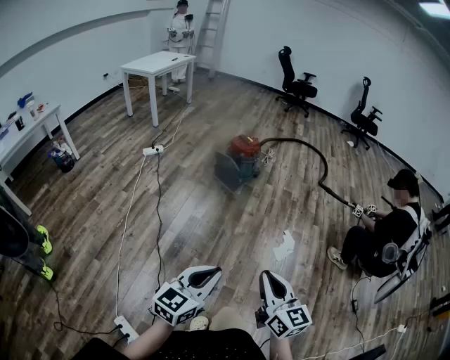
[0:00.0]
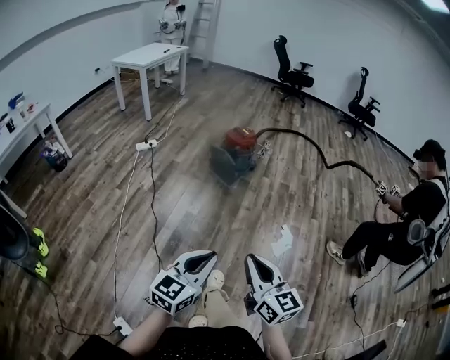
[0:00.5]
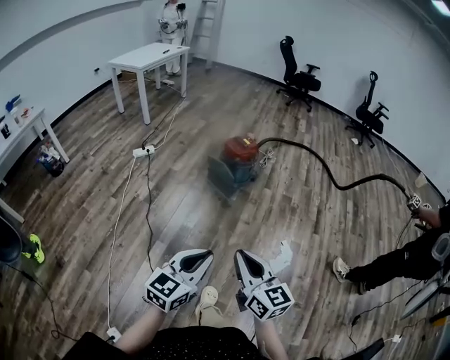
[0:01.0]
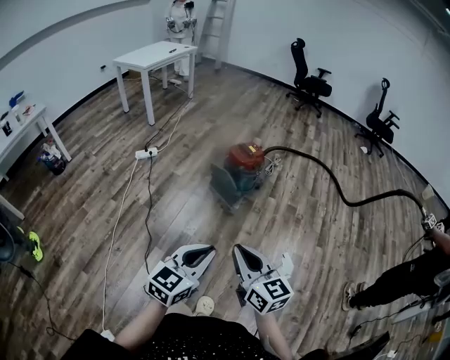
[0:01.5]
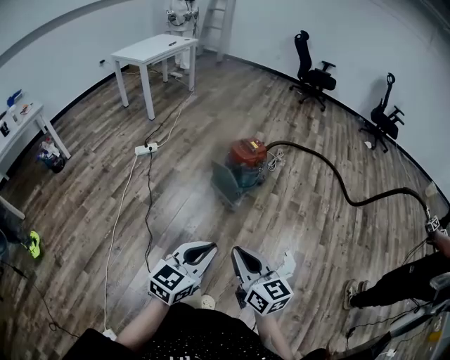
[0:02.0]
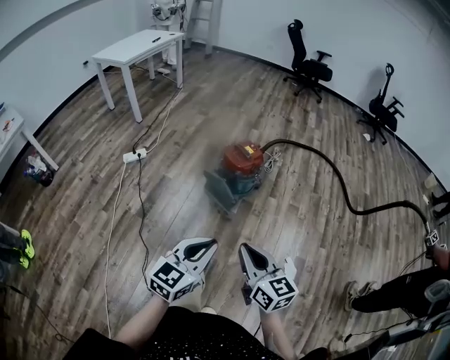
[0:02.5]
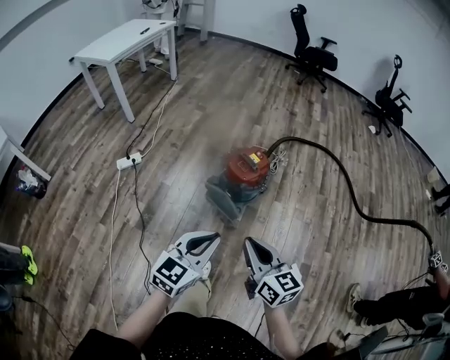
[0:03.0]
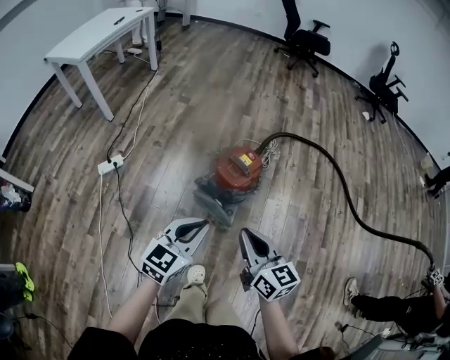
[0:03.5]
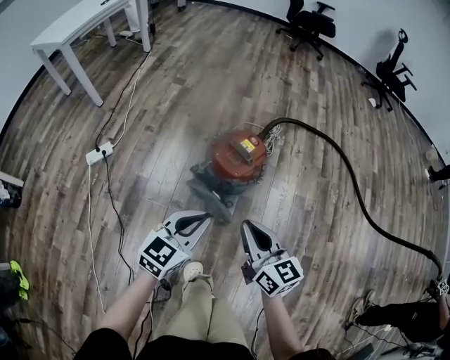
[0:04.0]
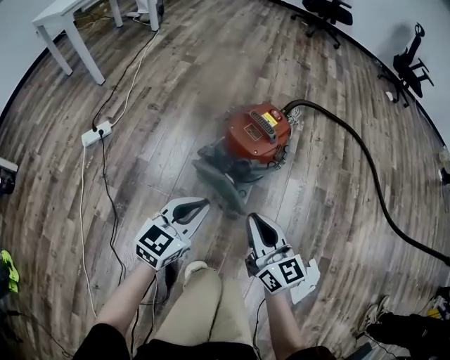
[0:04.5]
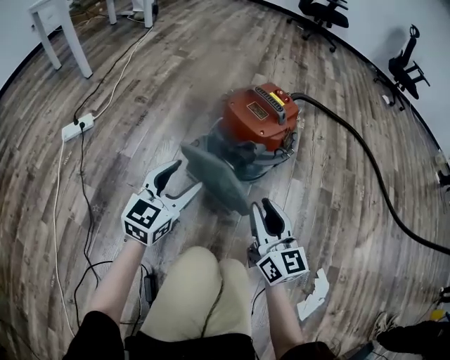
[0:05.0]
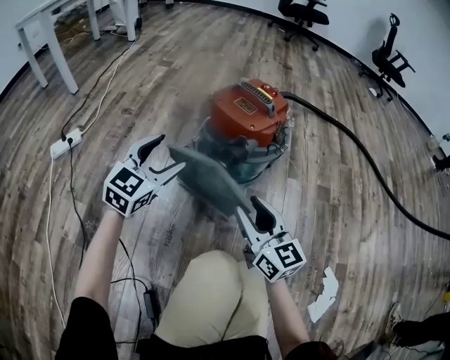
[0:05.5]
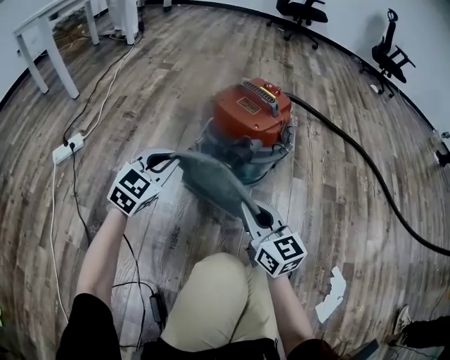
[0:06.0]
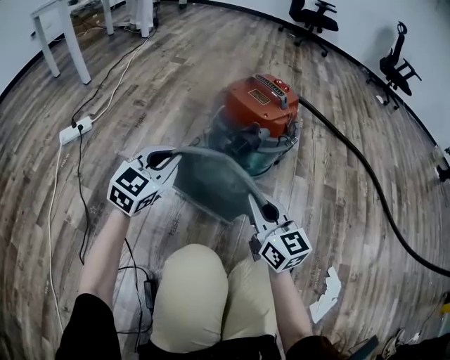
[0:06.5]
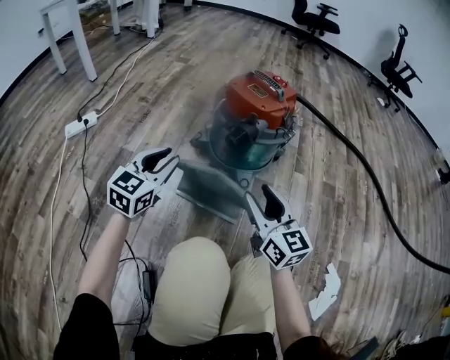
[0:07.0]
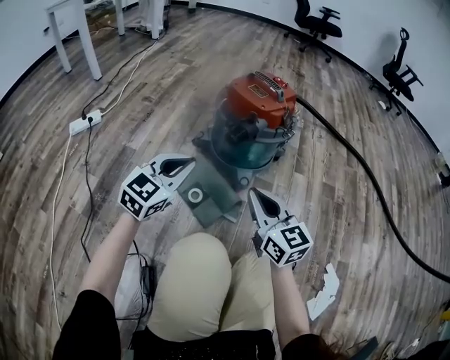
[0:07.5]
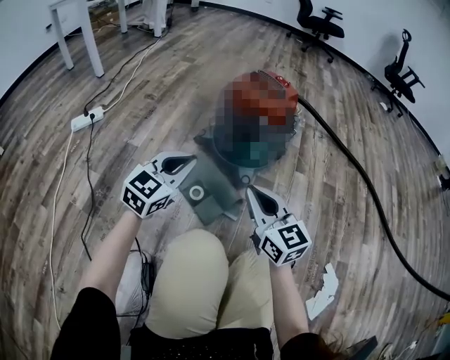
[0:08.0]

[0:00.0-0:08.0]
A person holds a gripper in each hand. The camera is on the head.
0.0 to 2.0 s: The grippers both shift forward by roughly 35 cm.
2.0 to 4.0 s: The pair of grippers is taken forward, some 50 cm.
4.0 to 6.0 s: The grippers both shift downward by approximately 35 cm. The right gripper opens, then closes once more, while the left gripper turns by approximately 30 degrees, and opens, then closes once more.
6.0 to 8.0 s: The left gripper heads backward, covering about 15 cm. Meanwhile the right gripper moves backward, some 10 cm, and opens and closes again.

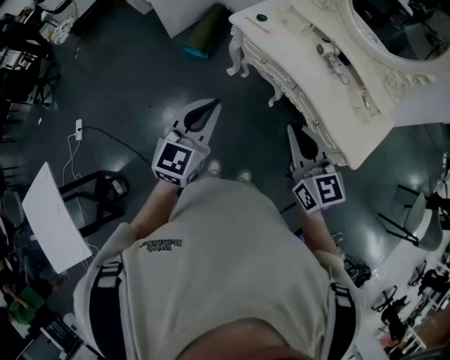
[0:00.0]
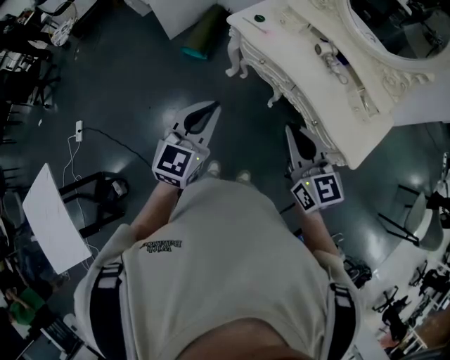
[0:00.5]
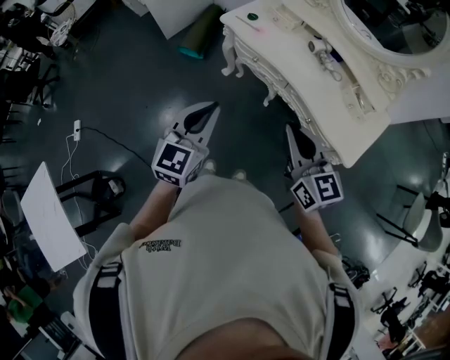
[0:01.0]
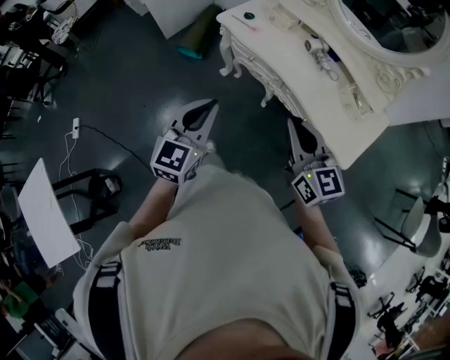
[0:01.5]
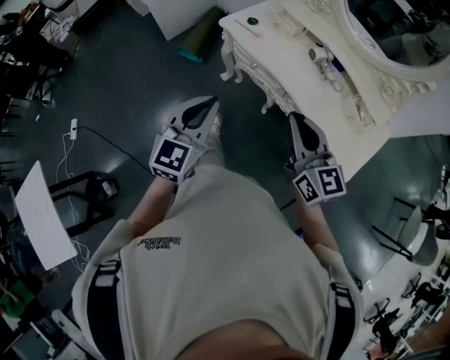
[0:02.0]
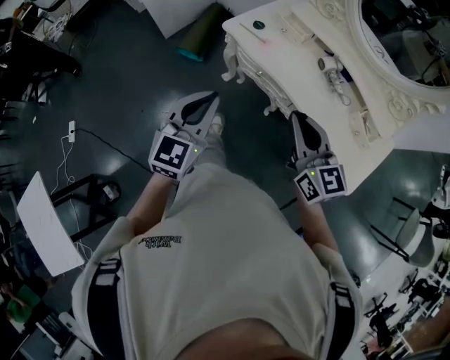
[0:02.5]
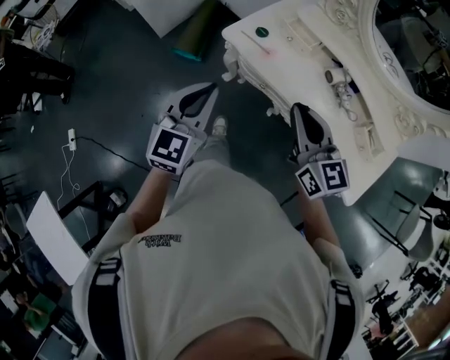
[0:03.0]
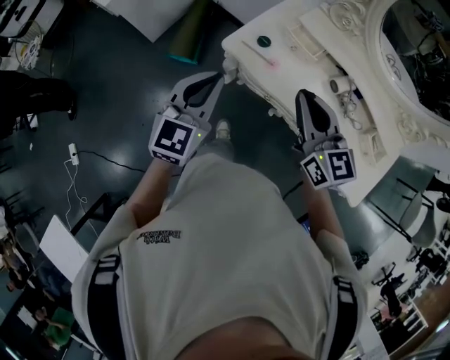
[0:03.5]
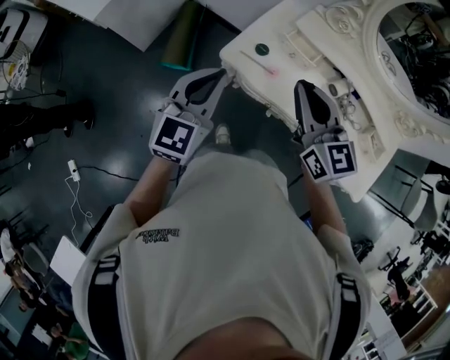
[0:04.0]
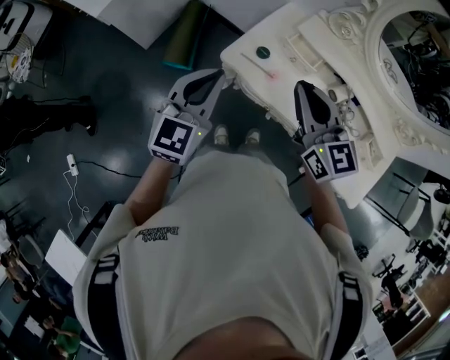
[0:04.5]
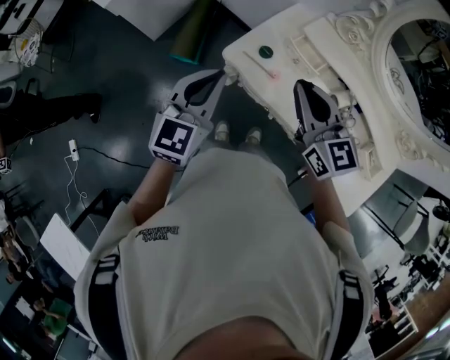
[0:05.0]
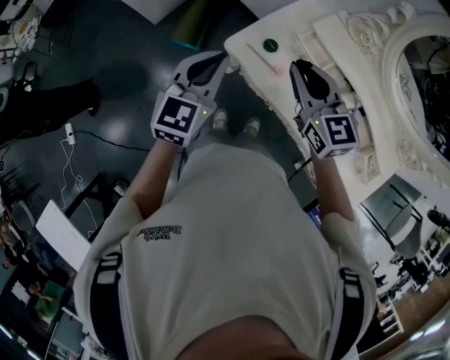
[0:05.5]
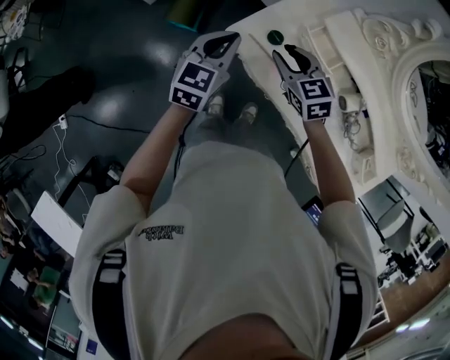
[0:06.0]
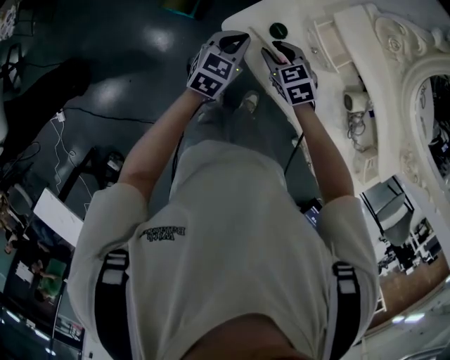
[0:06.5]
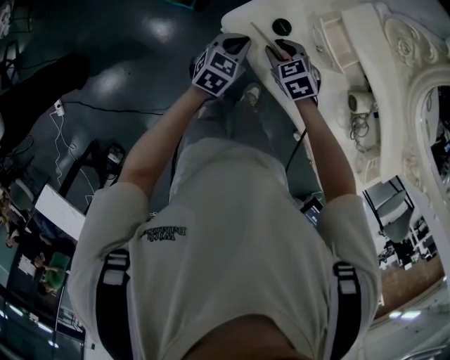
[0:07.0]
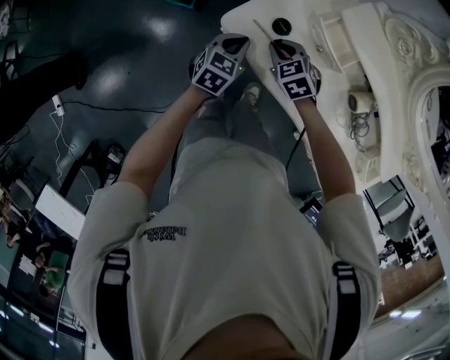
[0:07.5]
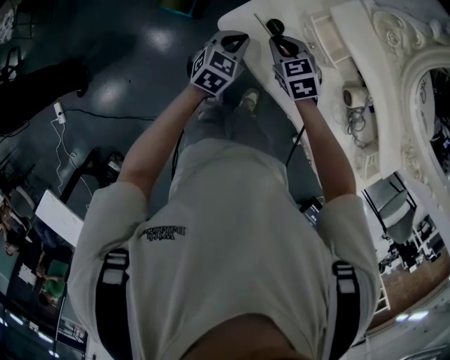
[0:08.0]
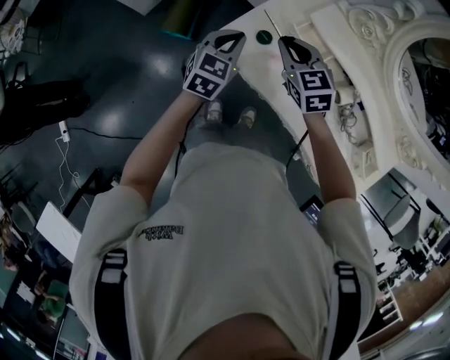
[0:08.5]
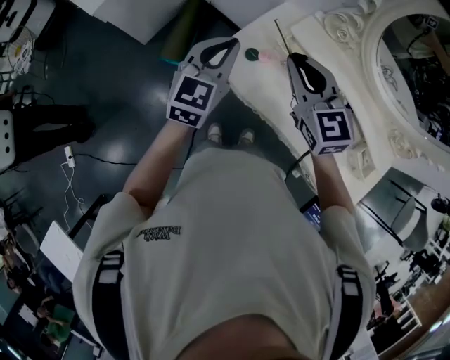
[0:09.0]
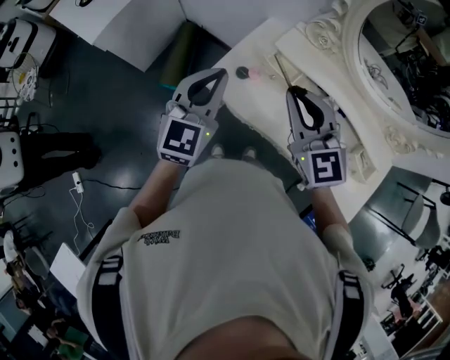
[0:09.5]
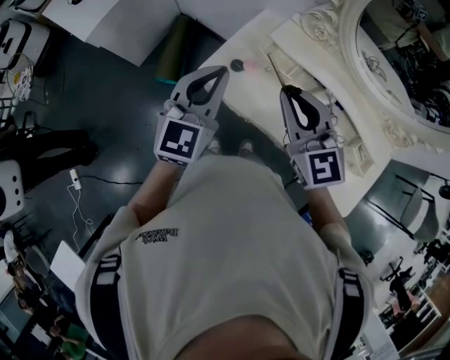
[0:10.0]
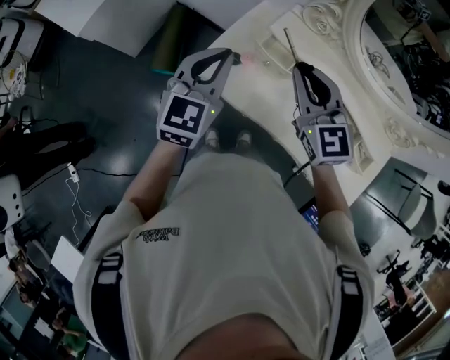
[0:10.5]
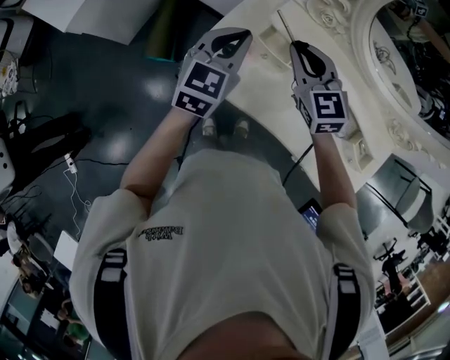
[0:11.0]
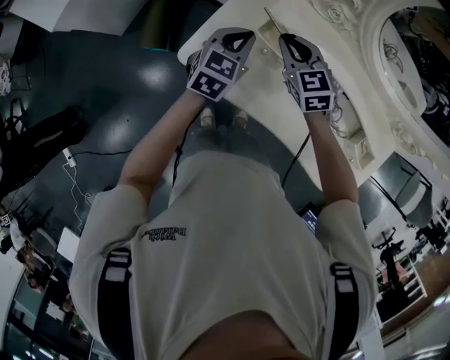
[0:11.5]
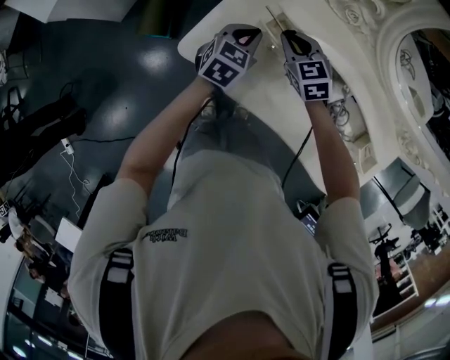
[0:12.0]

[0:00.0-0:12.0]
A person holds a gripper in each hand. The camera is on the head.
0.0 to 2.0 s: The left gripper is displaced to the right by some 5 cm. Meanwhile the right gripper is displaced to the right and forward by roughly 10 cm.
2.0 to 4.0 s: The two grippers travel together, forward, roughly 40 cm.
4.0 to 6.0 s: Both grippers move downward and forward, about 25 cm. The right gripper rotates about 40 degrees, and opens up.
6.0 to 8.0 s: The left gripper goes roughly 15 cm downward; the right gripper shifts roughly 10 cm downward, and closes up.
8.0 to 10.0 s: The two grippers go some 30 cm upward. The right gripper points its fingers about 40 degrees further upward, while the left gripper tips its fingers upward by approximately 30 degrees.
10.0 to 12.0 s: Both grippers travel together downward and forward, approximately 35 cm. The right gripper changes its angle by roughly 30 degrees. The left gripper rotates approximately 30 degrees.

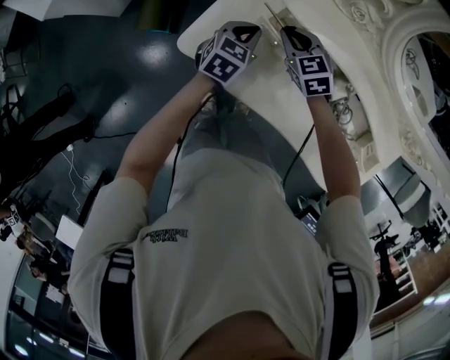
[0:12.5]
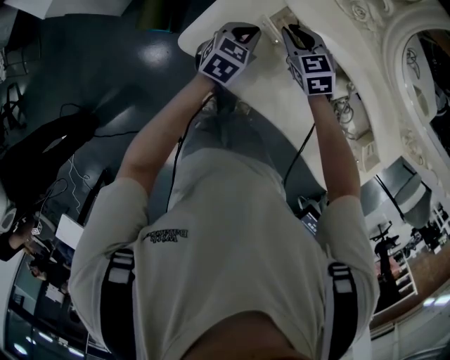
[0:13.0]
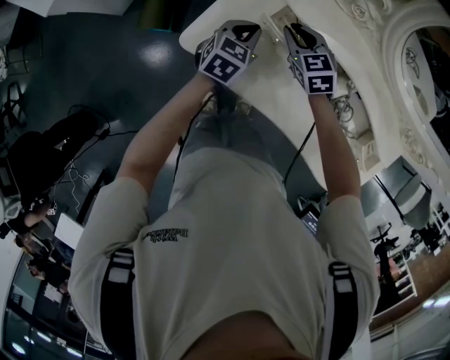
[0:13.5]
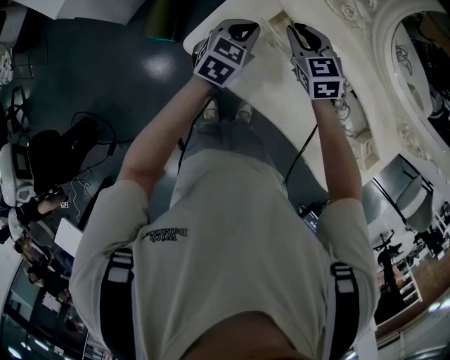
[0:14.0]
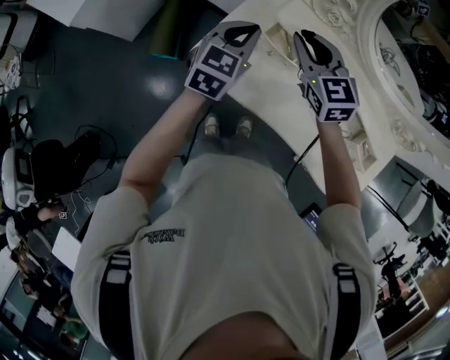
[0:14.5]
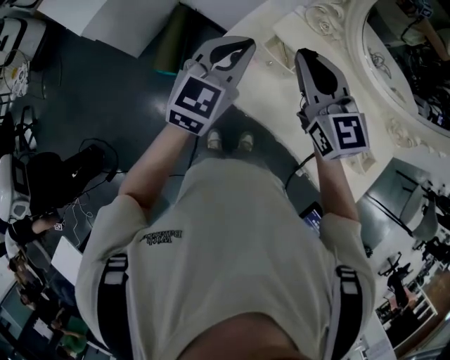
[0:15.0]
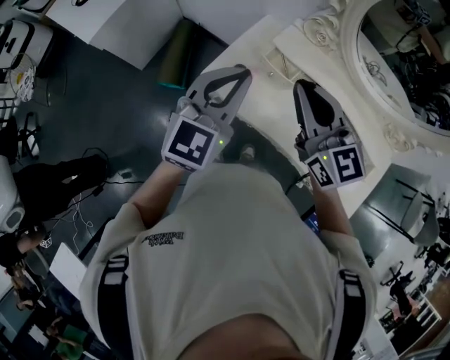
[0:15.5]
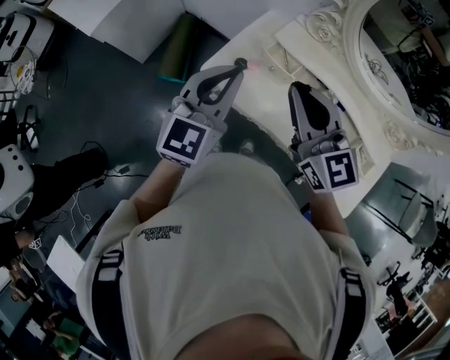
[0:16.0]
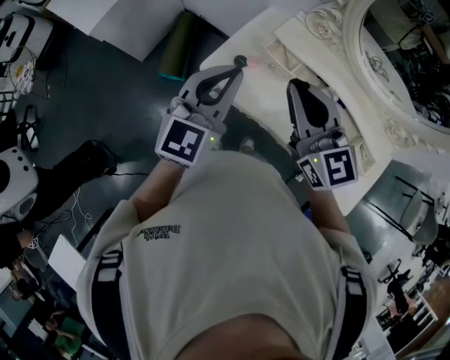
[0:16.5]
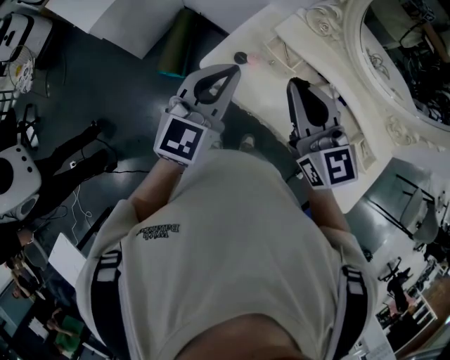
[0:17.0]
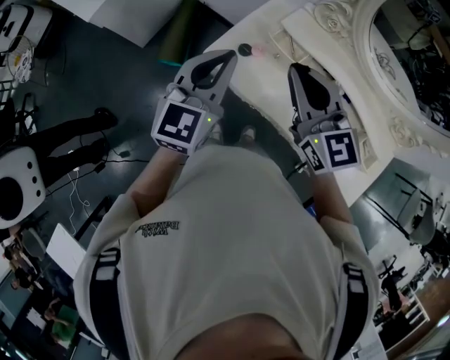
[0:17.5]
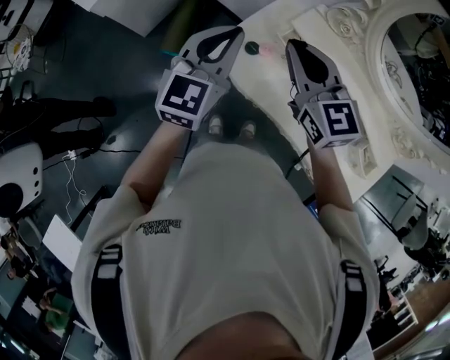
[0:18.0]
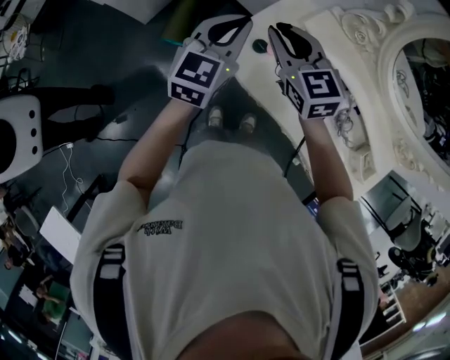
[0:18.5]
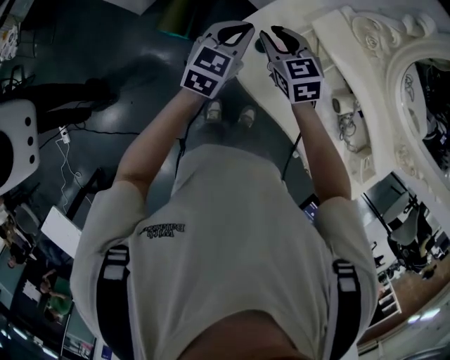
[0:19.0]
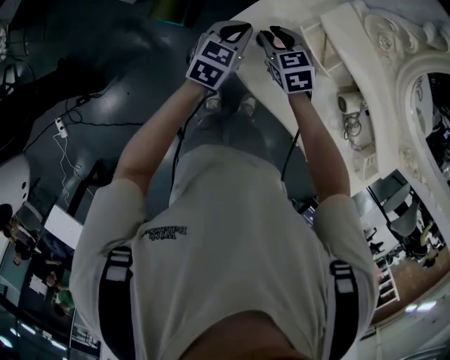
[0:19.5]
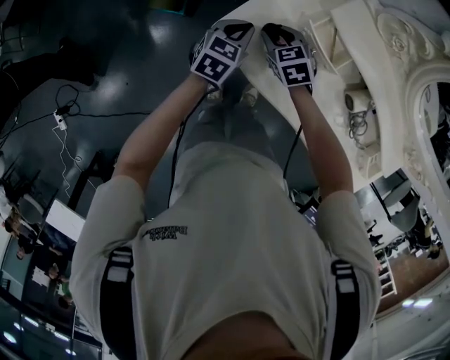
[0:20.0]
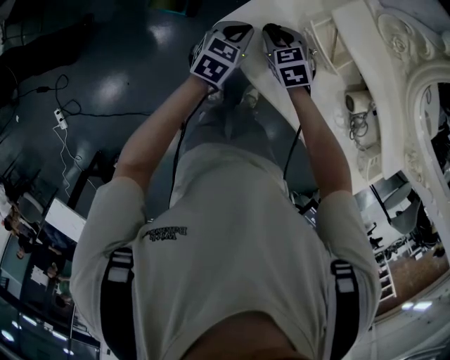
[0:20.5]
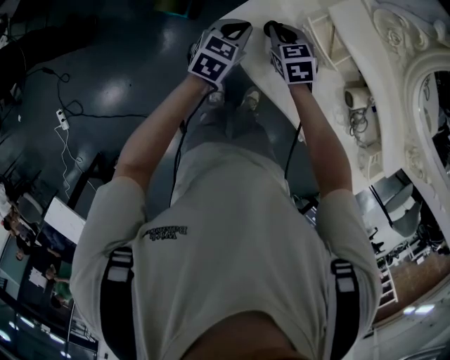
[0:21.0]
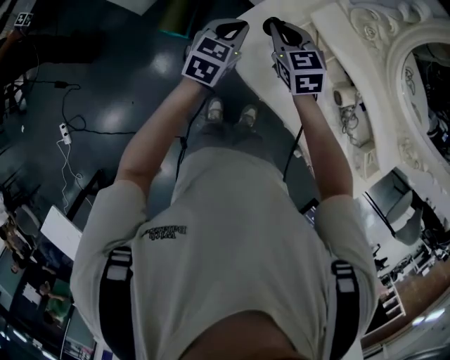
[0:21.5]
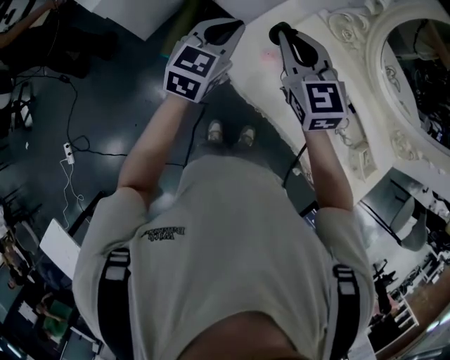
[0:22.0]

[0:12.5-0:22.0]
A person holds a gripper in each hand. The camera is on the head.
12.5 to 14.5 s: The two grippers go some 20 cm upward. The right gripper swivels about 20 degrees.
14.5 to 16.5 s: The two grippers go some 20 cm backward and upward. The right gripper changes its angle by approximately 20 degrees.
16.5 to 18.0 s: The grippers both shift forward by roughly 10 cm.
18.0 to 20.0 s: Both grippers move downward, approximately 35 cm. The right gripper tips its fingers downward by some 40 degrees, and opens. Meanwhile the left gripper tilts its fingers about 30 degrees downward.
20.0 to 22.0 s: The grippers both shift upward by some 30 cm. The right gripper points its fingers roughly 40 degrees further upward, and closes up; the left gripper turns by some 30 degrees.
